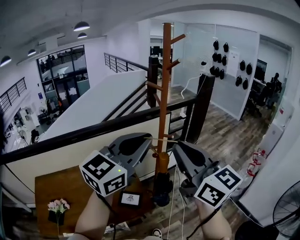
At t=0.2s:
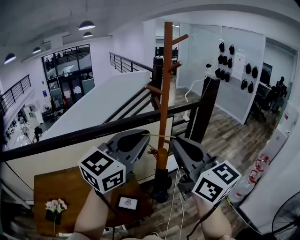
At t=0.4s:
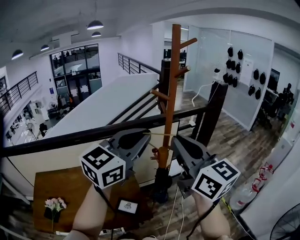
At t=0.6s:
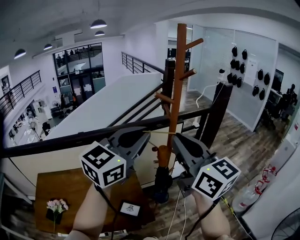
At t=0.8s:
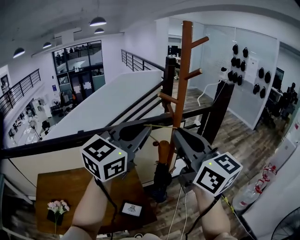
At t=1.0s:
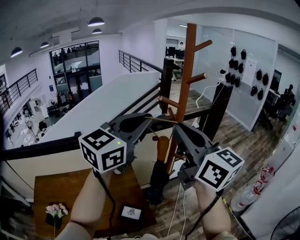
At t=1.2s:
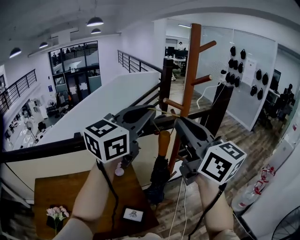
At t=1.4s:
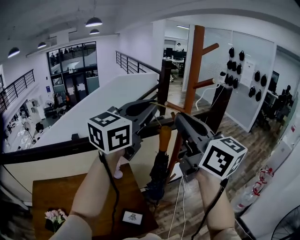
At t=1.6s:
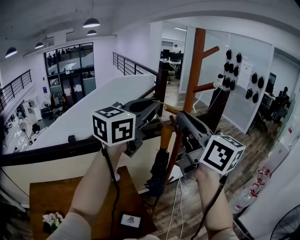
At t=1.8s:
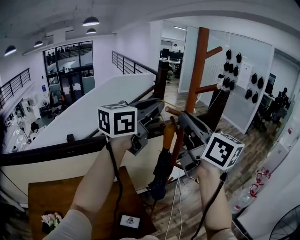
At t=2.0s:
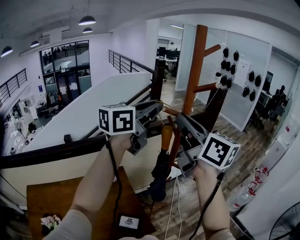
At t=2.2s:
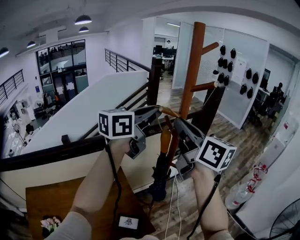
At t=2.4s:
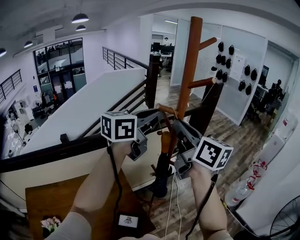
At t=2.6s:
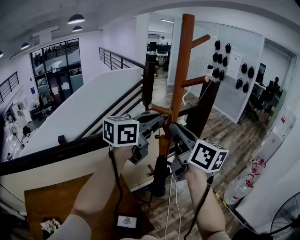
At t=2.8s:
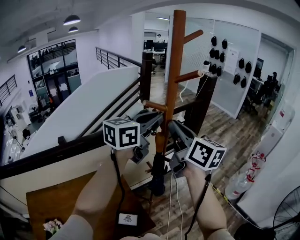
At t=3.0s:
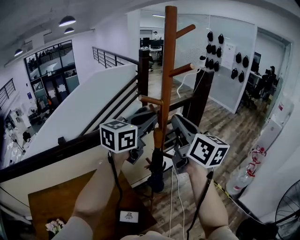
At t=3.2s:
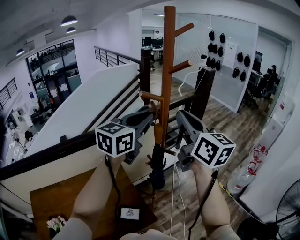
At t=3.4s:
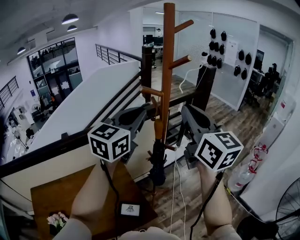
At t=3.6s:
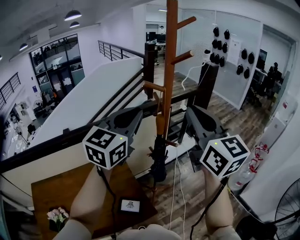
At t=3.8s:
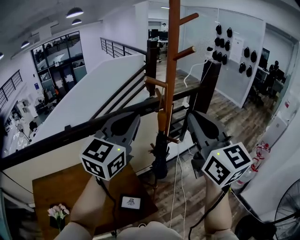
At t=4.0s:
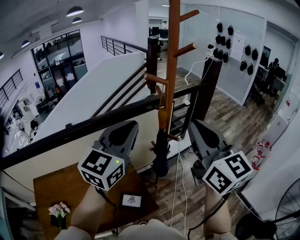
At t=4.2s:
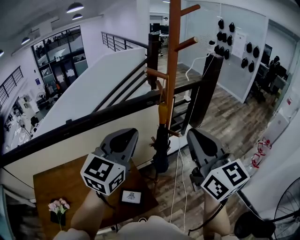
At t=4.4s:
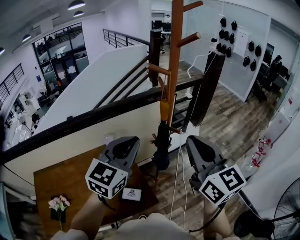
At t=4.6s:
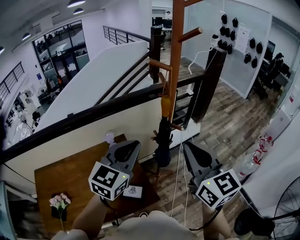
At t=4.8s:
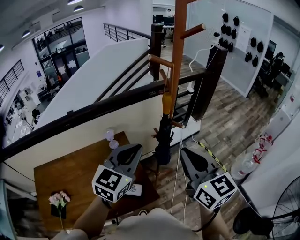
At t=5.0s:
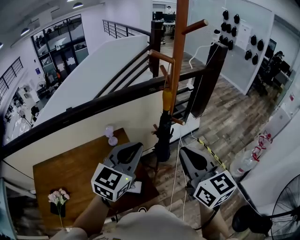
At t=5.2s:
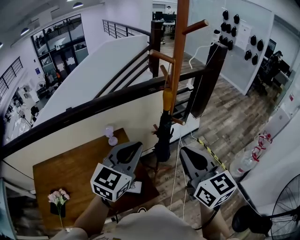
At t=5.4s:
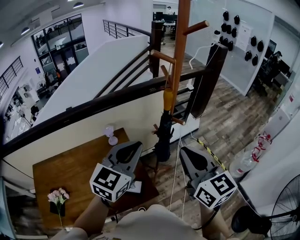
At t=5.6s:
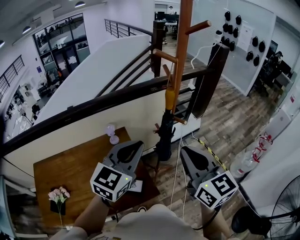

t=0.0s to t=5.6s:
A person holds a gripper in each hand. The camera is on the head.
t=0.0s to t=1.4s: The two grippers go some 20 cm forward.
t=1.4s to t=2.8s: The left gripper shifts some 15 cm downward, forward and to the right, and swivels about 20 degrees; the right gripper heads forward and downward, covering about 15 cm.
t=2.8s to t=4.2s: The grippers both shift backward by roughly 15 cm. The left gripper changes its angle by some 30 degrees. The right gripper changes its angle by some 20 degrees.
t=4.2s to t=5.6s: Both grippers travel together downward, approximately 10 cm.

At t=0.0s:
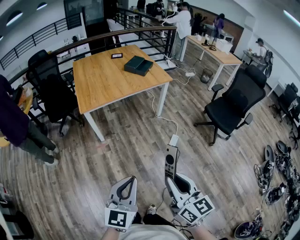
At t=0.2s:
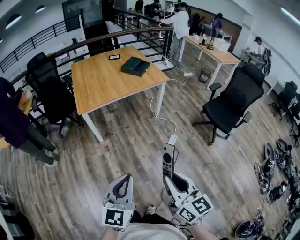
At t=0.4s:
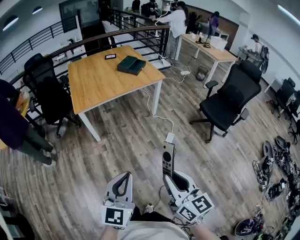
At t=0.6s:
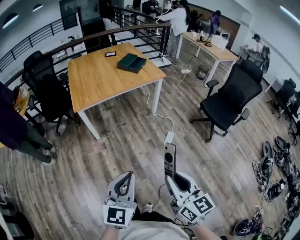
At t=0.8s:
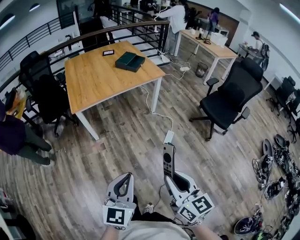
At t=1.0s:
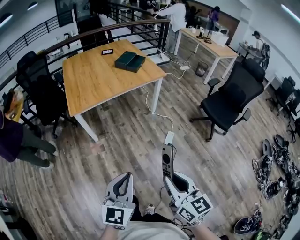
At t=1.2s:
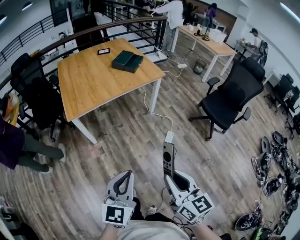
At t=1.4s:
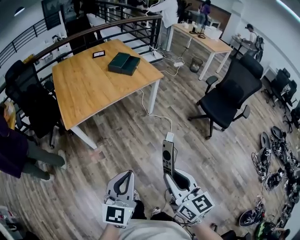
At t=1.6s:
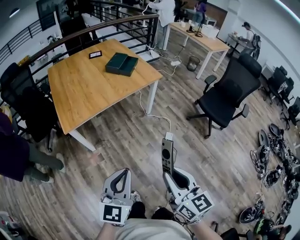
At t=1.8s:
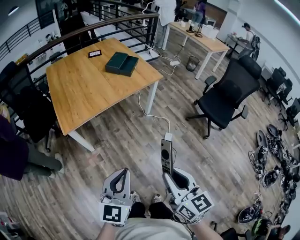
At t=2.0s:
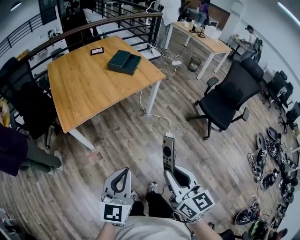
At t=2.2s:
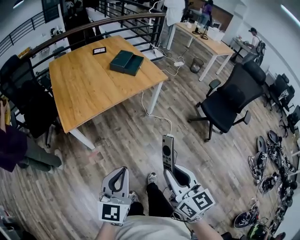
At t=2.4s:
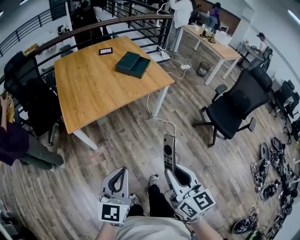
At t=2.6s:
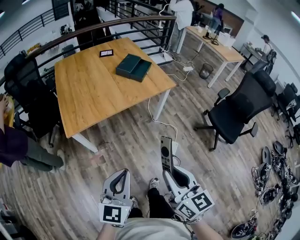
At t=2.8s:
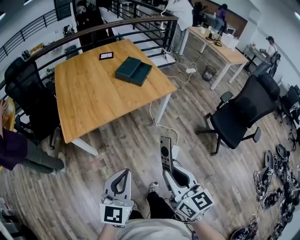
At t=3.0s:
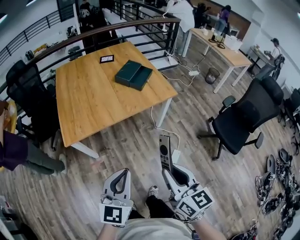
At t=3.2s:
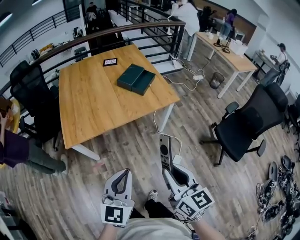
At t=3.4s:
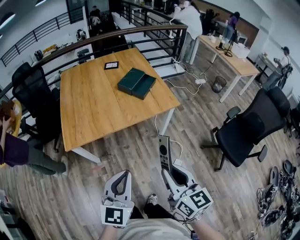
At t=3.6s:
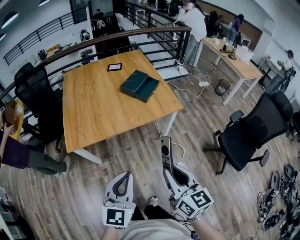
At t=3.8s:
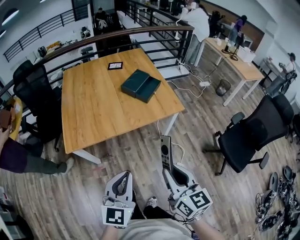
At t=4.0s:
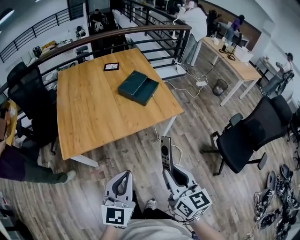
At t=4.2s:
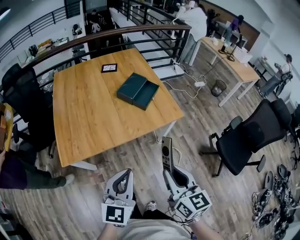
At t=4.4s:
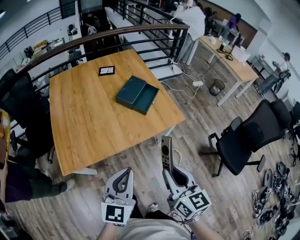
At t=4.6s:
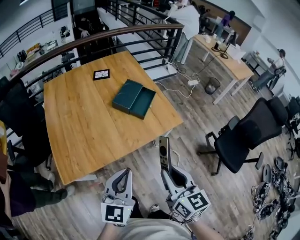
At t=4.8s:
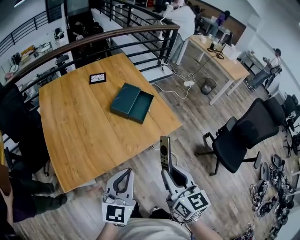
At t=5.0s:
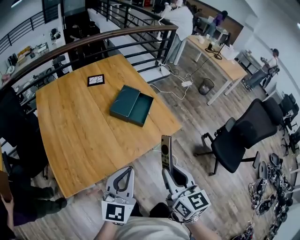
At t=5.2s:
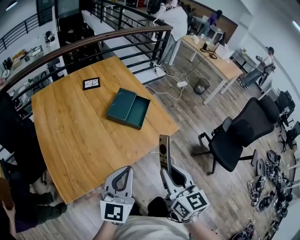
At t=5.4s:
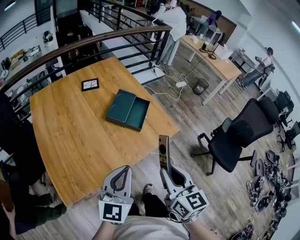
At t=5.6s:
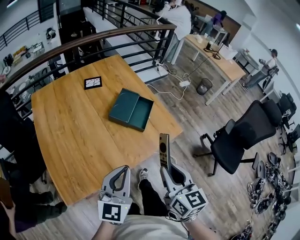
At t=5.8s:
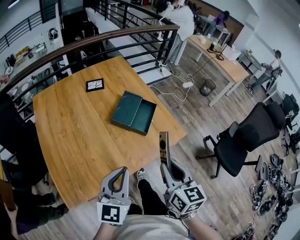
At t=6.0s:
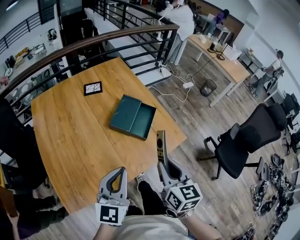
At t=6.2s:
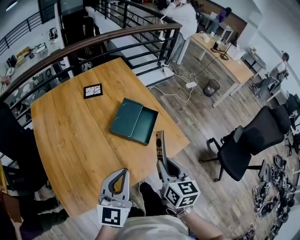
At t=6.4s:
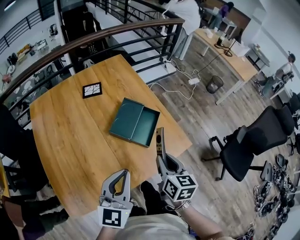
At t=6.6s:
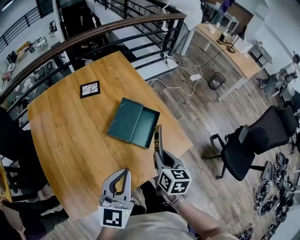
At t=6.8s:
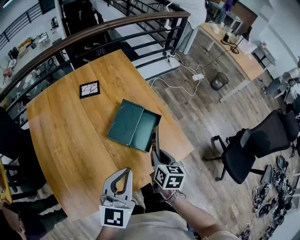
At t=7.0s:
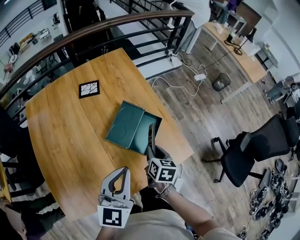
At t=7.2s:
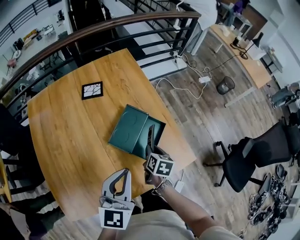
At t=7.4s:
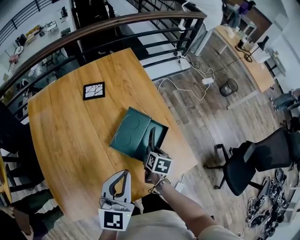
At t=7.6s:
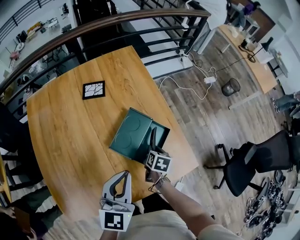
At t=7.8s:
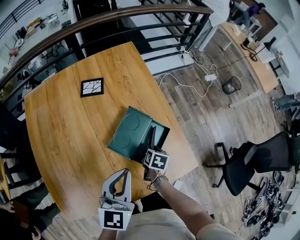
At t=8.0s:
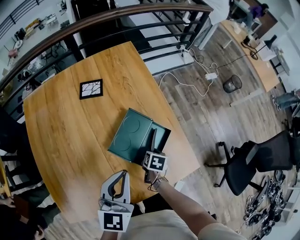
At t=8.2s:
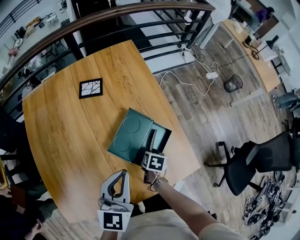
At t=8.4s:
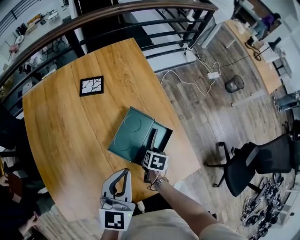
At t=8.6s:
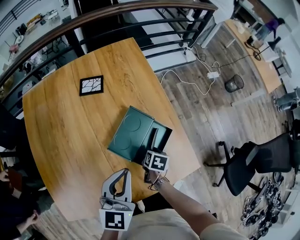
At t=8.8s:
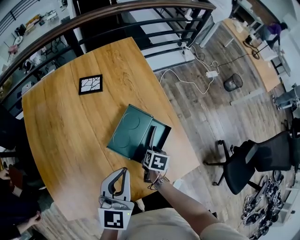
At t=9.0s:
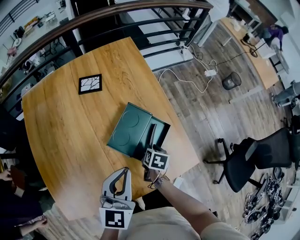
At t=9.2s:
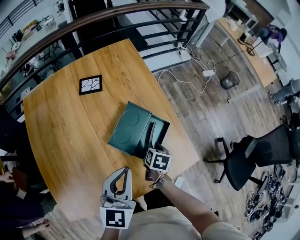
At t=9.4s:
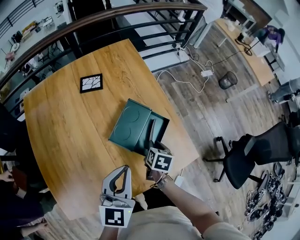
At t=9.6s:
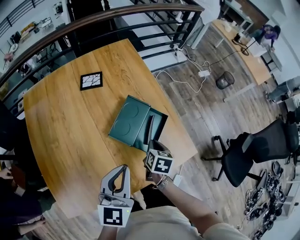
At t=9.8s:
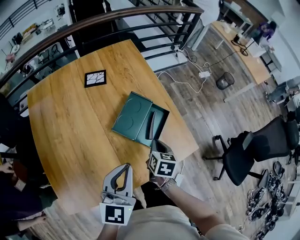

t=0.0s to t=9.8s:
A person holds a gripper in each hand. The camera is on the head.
t=0.0s to t=1.4s: Both grippers move forward, approximately 20 cm.
t=1.4s to t=2.8s: Both grippers travel together forward, some 20 cm.
t=2.8s to t=4.2s: Both grippers move forward, approximately 25 cm.
t=4.2s to t=5.6s: The left gripper is displaced forward by some 25 cm, while the right gripper is displaced forward and to the left by some 25 cm.
t=5.6s to t=7.0s: The left gripper goes about 25 cm forward. The right gripper travels forward and downward by approximately 40 cm, and swivels approximately 30 degrees.
t=7.0s to t=8.4s: The right gripper travels downward and forward by roughly 20 cm, and swivels approximately 20 degrees. The left gripper moves forward and downward, about 15 cm.
t=8.4s to t=9.8s: The right gripper travels upward and backward by approximately 15 cm, and changes its angle by roughly 20 degrees. The left gripper goes some 15 cm backward.

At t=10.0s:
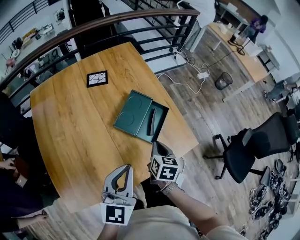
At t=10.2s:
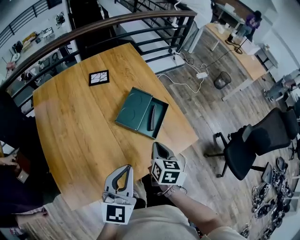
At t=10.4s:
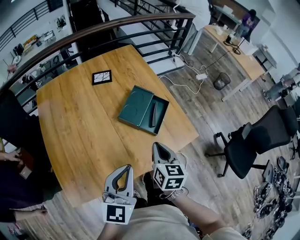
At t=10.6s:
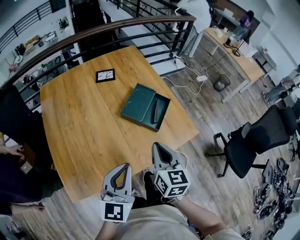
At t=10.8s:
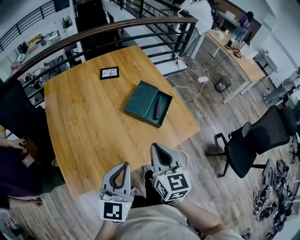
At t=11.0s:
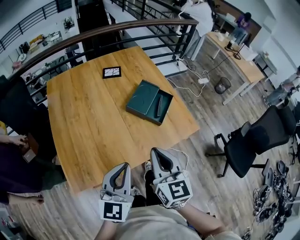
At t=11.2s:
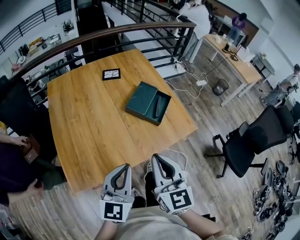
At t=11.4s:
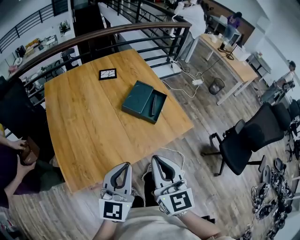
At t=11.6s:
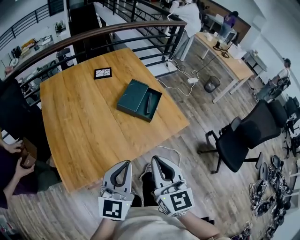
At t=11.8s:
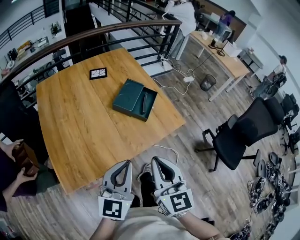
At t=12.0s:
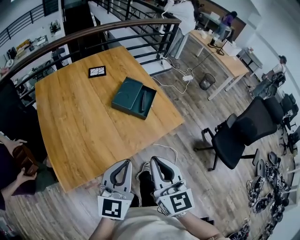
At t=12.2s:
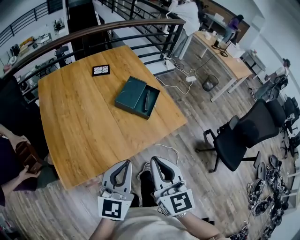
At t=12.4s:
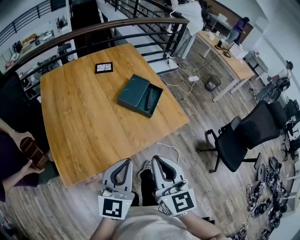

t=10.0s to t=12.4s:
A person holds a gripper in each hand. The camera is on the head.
t=10.0s to t=11.2s: The right gripper moves backward and upward, some 35 cm, and points its fingers roughly 30 degrees further upward. The left gripper moves backward, about 25 cm.
t=11.2s to t=12.4s: The right gripper travels backward by about 5 cm.

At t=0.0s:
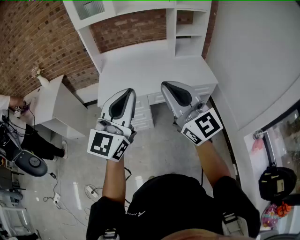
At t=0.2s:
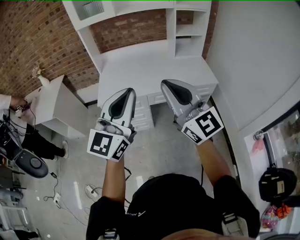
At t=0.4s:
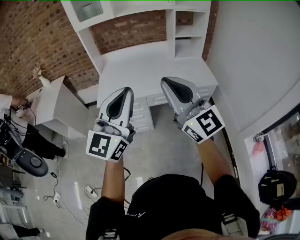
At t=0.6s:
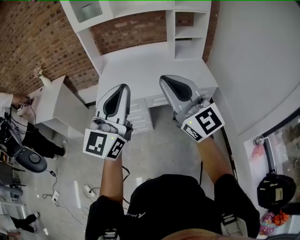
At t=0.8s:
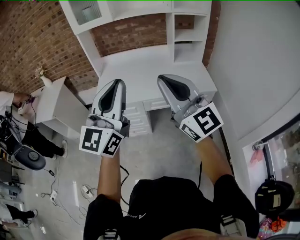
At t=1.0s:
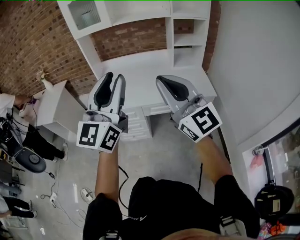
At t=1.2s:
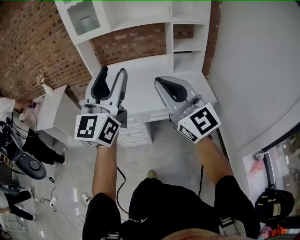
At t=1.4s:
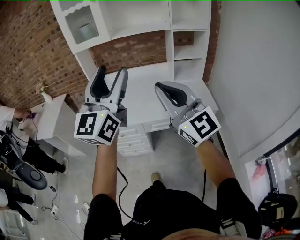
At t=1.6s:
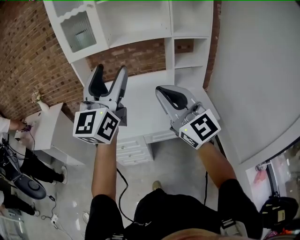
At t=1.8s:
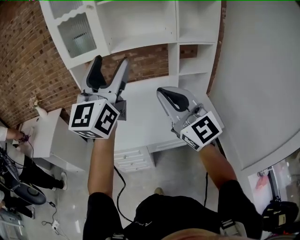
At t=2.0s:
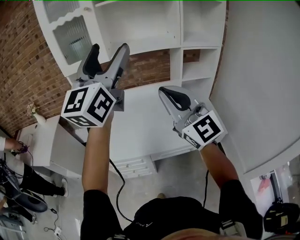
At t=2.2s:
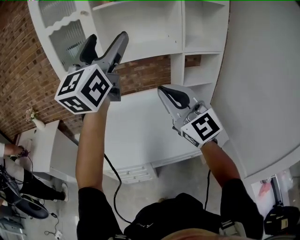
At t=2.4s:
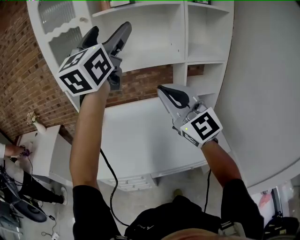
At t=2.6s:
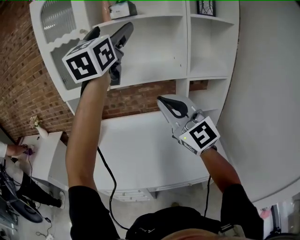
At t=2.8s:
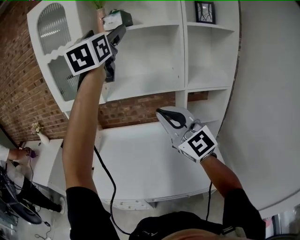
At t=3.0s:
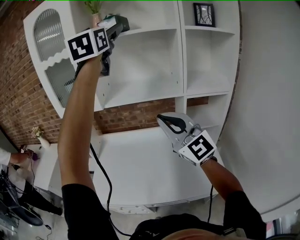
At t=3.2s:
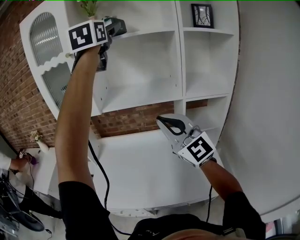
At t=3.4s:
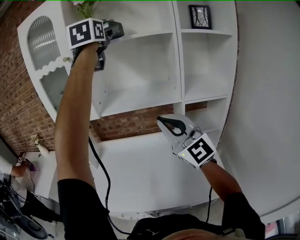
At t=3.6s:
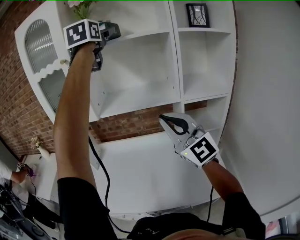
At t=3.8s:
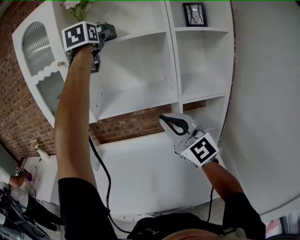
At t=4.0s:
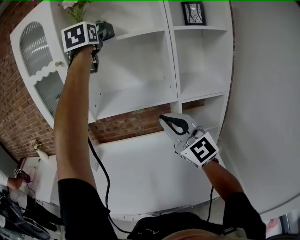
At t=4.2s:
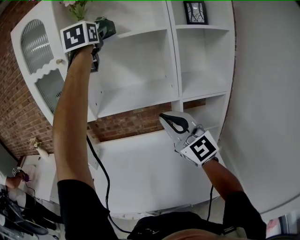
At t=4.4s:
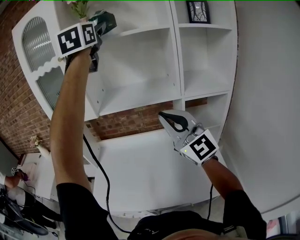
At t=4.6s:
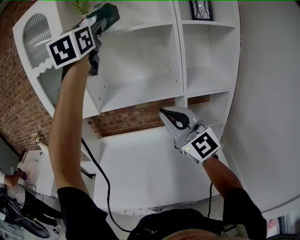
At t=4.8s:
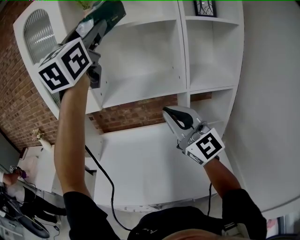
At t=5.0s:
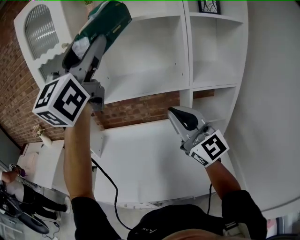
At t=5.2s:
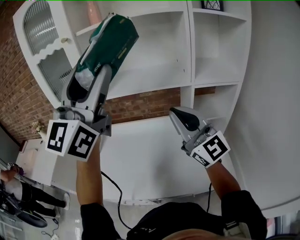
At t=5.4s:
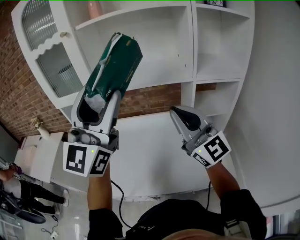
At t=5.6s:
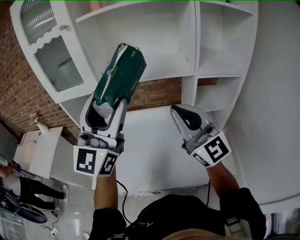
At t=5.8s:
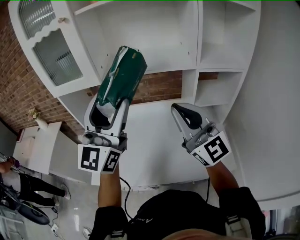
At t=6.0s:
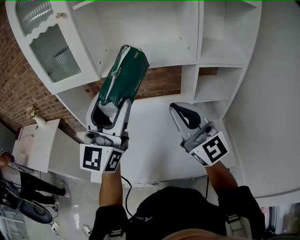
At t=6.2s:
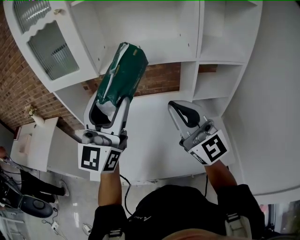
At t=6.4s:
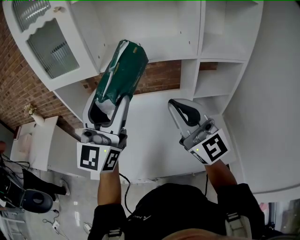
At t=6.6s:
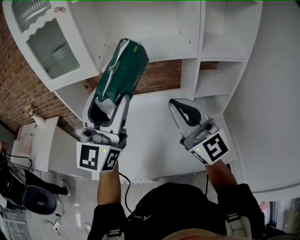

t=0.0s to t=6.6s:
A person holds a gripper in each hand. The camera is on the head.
t=0.0s to t=1.6s: The left gripper travels forward and upward by some 25 cm, and opens its fingers. Meanwhile the right gripper moves forward and to the right, approximately 20 cm.
t=1.6s to t=3.2s: The left gripper shifts about 60 cm forward and upward, turns by approximately 20 degrees, and opens its fingers, while the right gripper travels forward by about 35 cm.
t=3.2s to t=5.0s: The left gripper shifts about 15 cm backward and downward, turns by roughly 20 degrees, and closes.
t=5.0s to t=6.6s: The right gripper shifts about 5 cm downward; the left gripper heads downward, covering approximately 25 cm.
